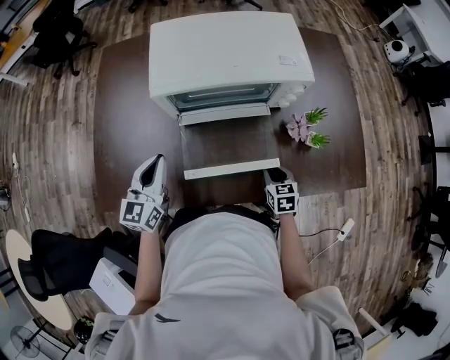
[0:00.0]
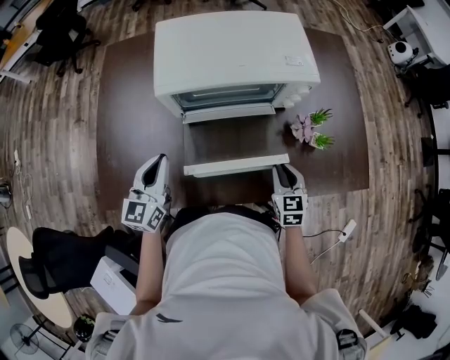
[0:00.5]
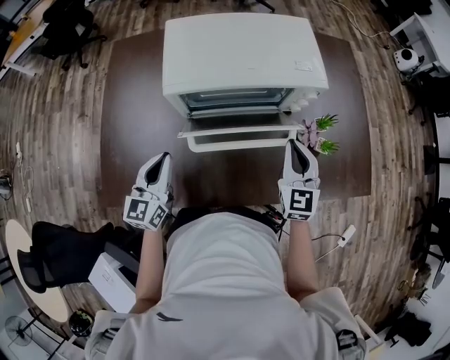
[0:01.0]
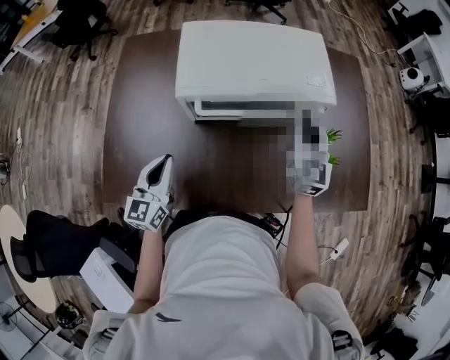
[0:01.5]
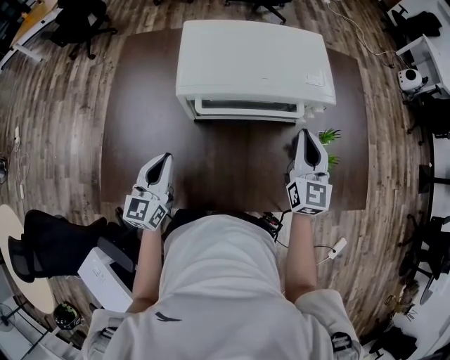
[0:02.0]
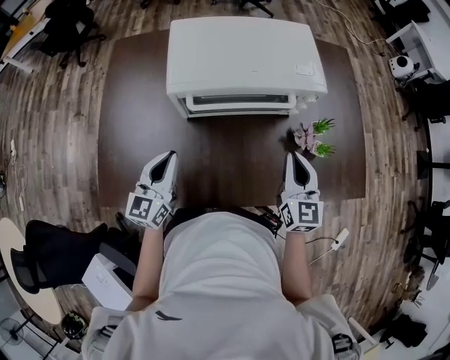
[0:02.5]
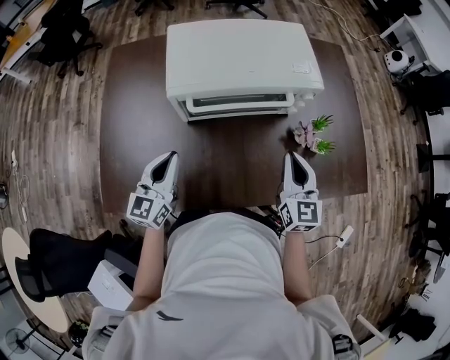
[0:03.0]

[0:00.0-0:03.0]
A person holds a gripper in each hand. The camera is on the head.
0:00.0 to 0:01.5: The right gripper moves upward and forward, approximately 30 cm, tips its fingers upward by some 40 degrees, and closes up.
0:01.5 to 0:03.0: The right gripper shifts roughly 15 cm backward.

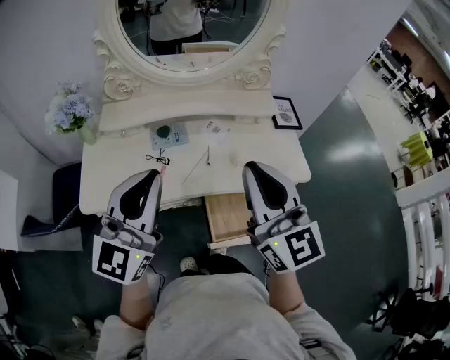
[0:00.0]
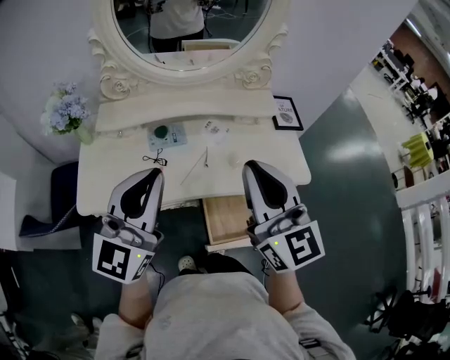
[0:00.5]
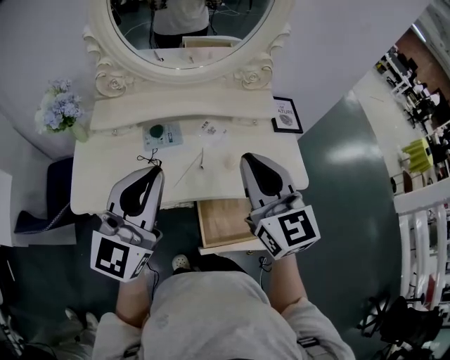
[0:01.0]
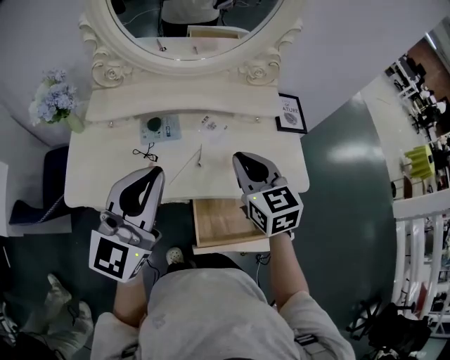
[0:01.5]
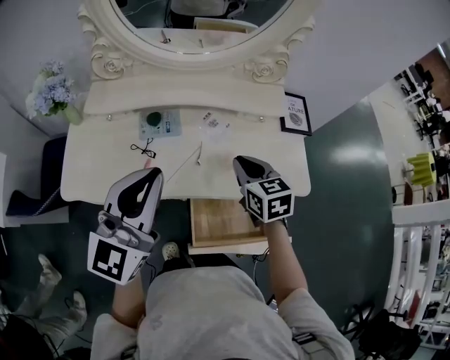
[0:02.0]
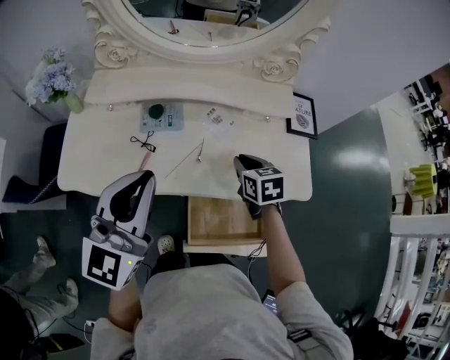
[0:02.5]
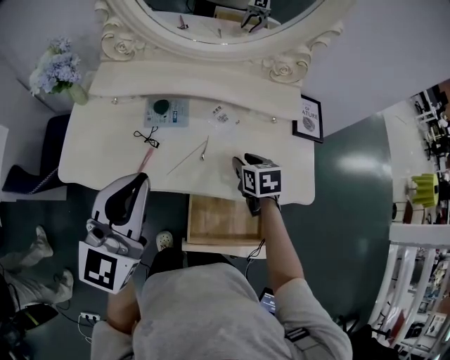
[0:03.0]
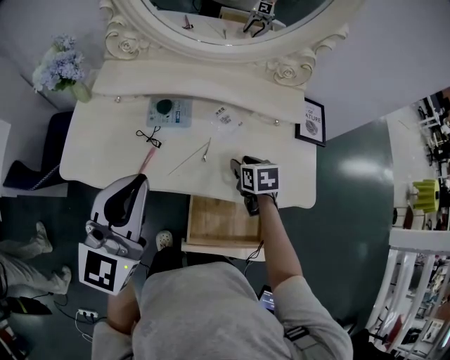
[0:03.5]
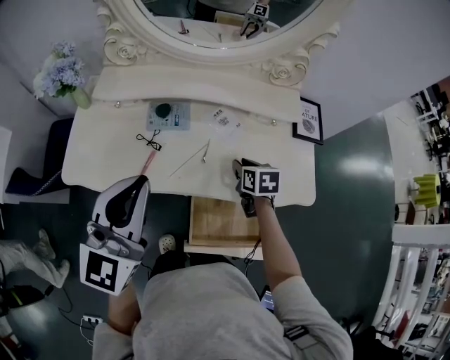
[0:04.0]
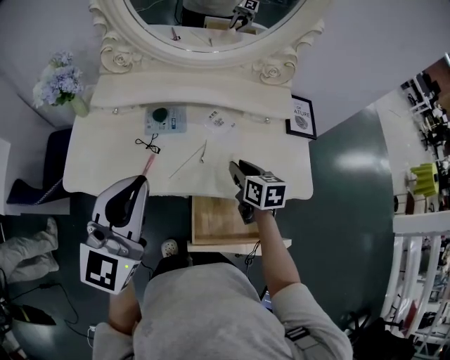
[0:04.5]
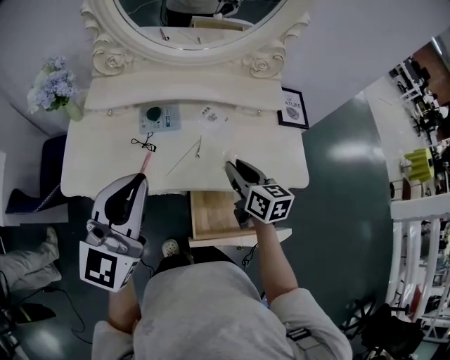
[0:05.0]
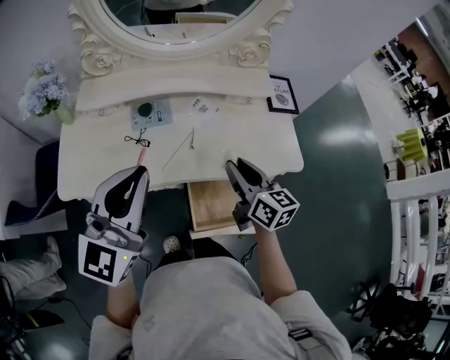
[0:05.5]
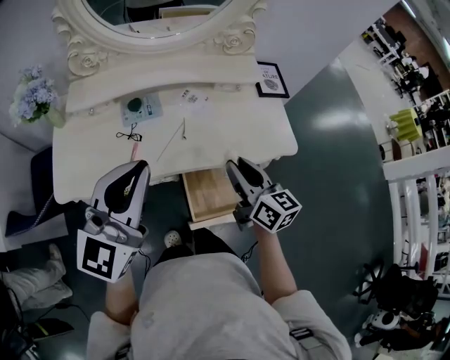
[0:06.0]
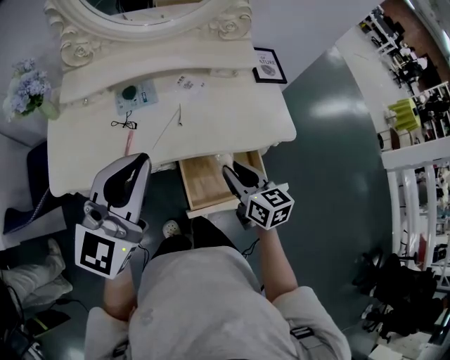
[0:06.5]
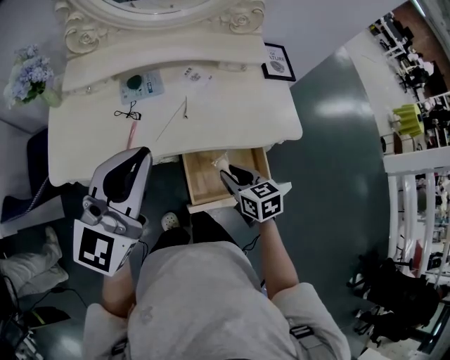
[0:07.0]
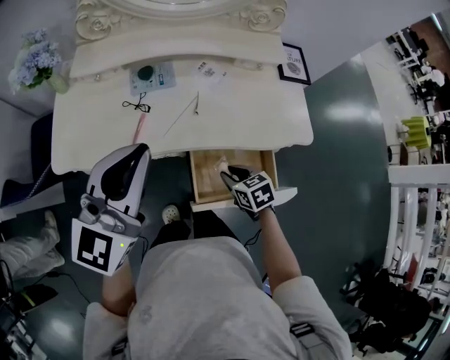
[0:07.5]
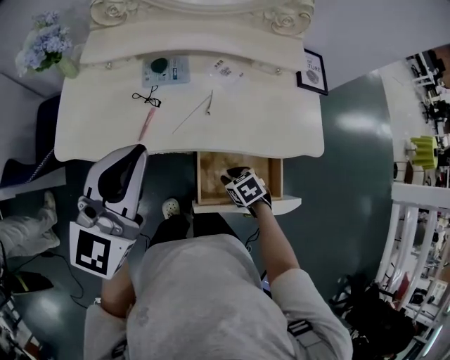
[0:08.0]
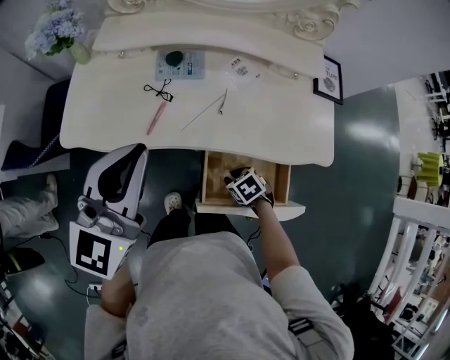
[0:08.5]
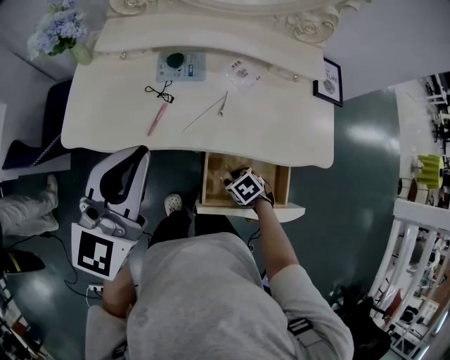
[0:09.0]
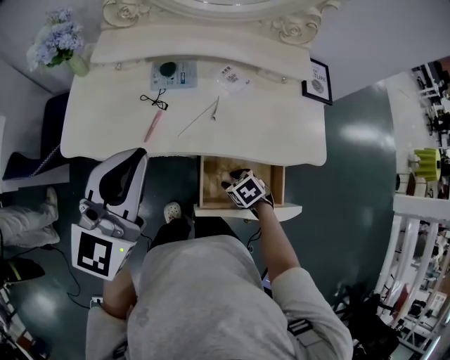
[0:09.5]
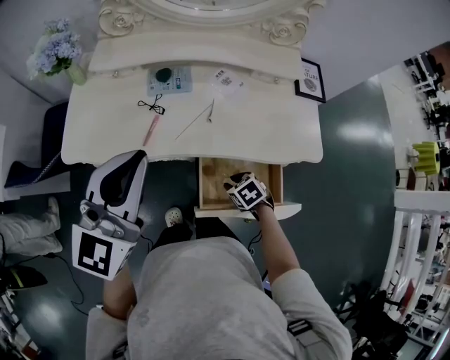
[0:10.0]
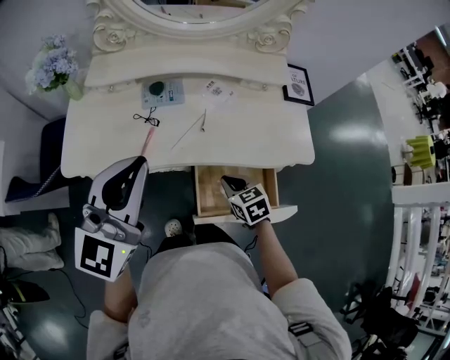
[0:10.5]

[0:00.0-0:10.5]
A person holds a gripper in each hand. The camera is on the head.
0:00.0 to 0:02.0: The left gripper travels forward by roughly 5 cm; the right gripper goes some 25 cm downward and forward, and points its fingers approximately 40 degrees further downward.
0:02.0 to 0:04.0: The right gripper travels downward by some 15 cm, and changes its angle by approximately 20 degrees.
0:04.0 to 0:06.5: The right gripper shifts about 20 cm backward and upward, and rotates about 30 degrees. Meanwhile the left gripper shifts by roughly 5 cm, and changes its angle by about 20 degrees.
0:06.5 to 0:08.5: The left gripper changes place by roughly 10 cm, while the right gripper heads downward, covering approximately 25 cm, and points its fingers approximately 50 degrees further downward.
0:08.5 to 0:10.5: The right gripper goes some 10 cm upward, and changes its angle by some 30 degrees.

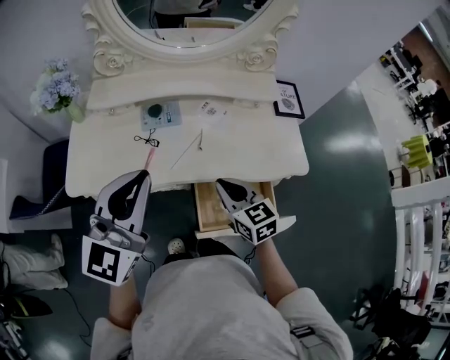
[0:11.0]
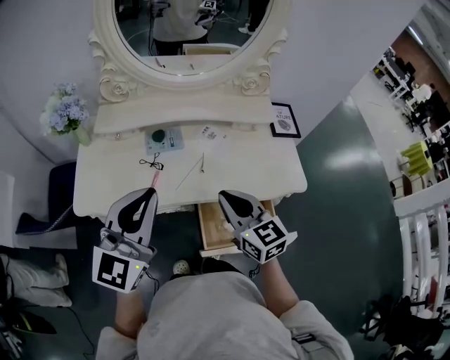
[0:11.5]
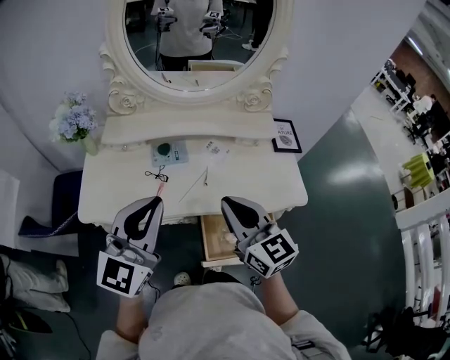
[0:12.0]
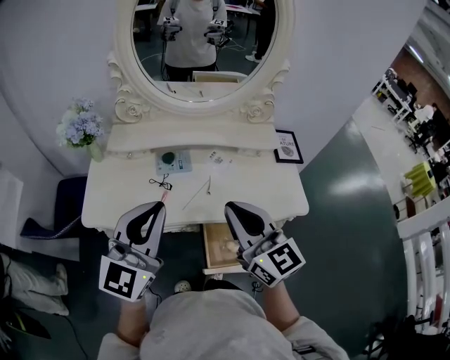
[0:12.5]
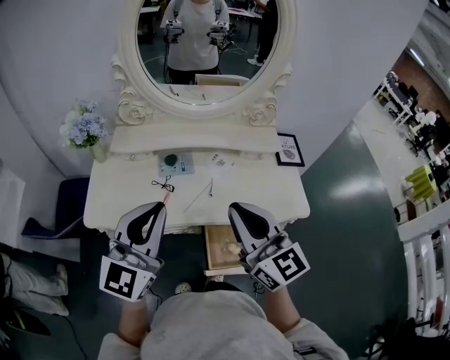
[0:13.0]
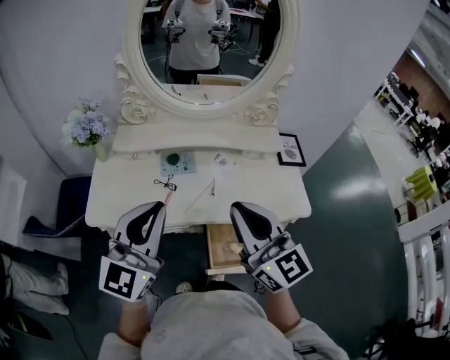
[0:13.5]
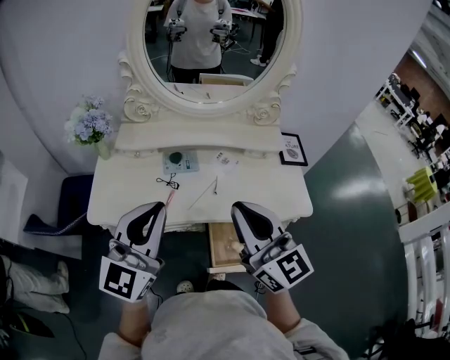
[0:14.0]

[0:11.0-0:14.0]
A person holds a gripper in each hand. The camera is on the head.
0:11.0 to 0:12.5: The right gripper is displaced upward by some 20 cm, and swivels roughly 30 degrees.
0:12.5 to 0:14.0: There are only small adjustments of the grippers.

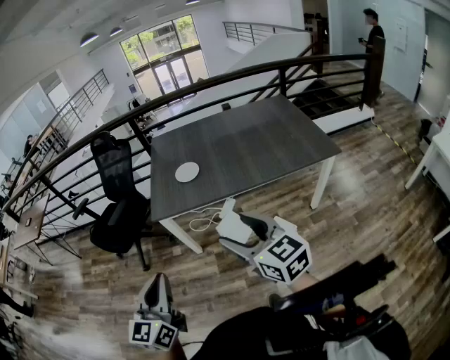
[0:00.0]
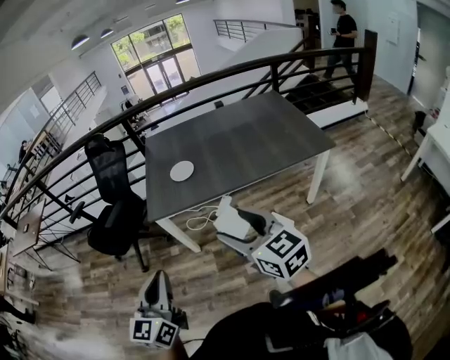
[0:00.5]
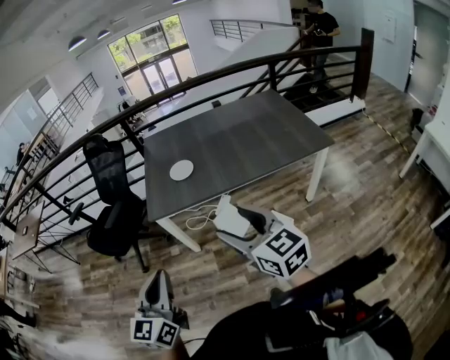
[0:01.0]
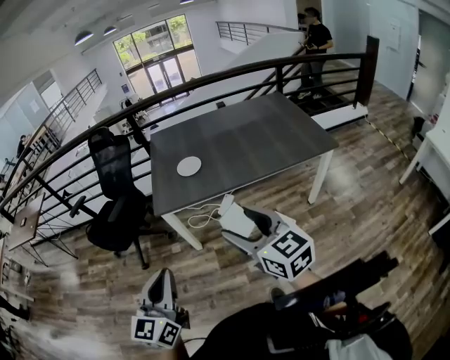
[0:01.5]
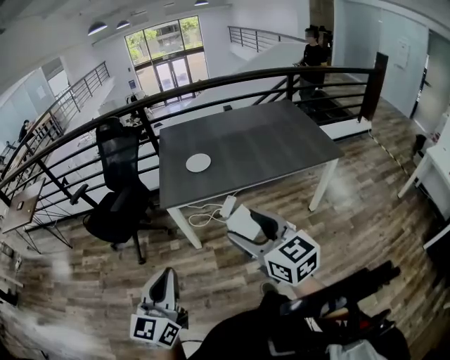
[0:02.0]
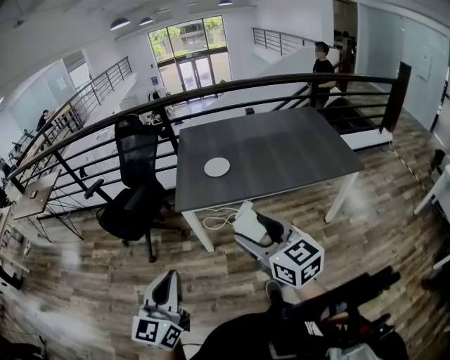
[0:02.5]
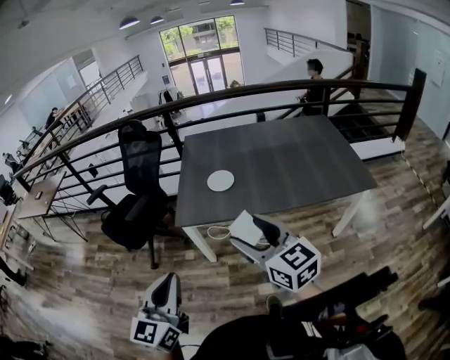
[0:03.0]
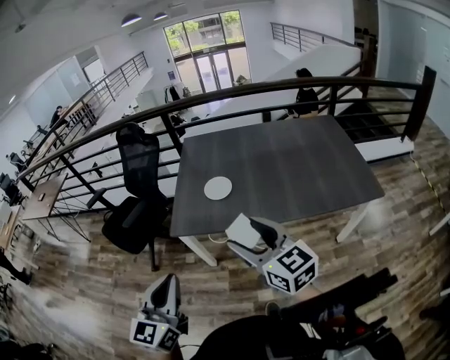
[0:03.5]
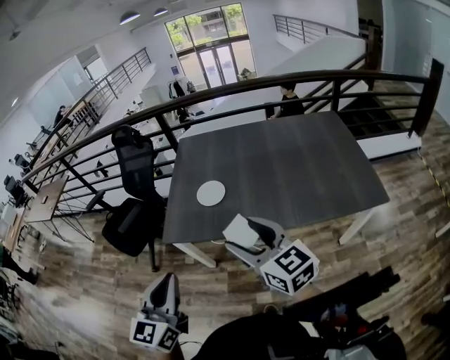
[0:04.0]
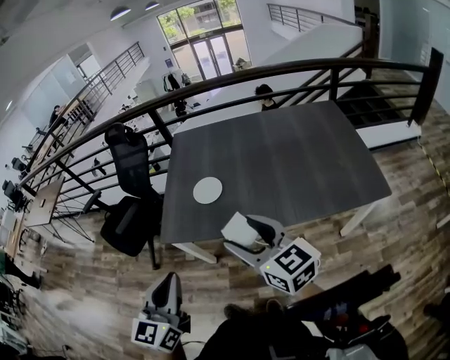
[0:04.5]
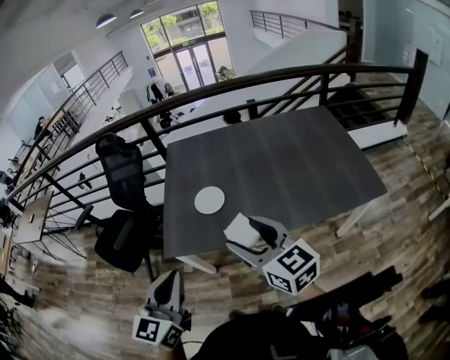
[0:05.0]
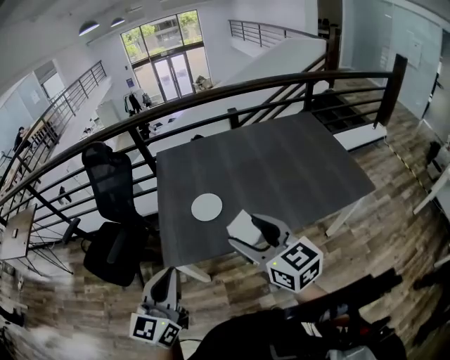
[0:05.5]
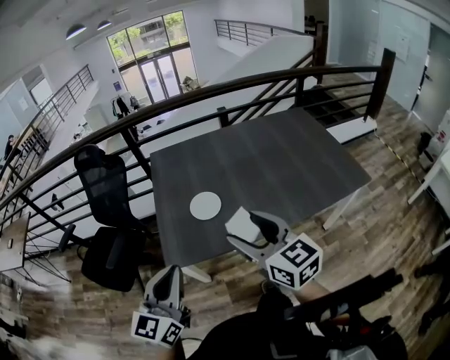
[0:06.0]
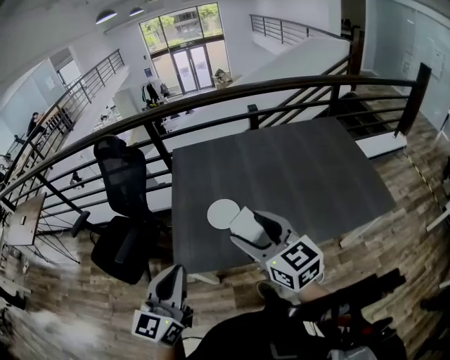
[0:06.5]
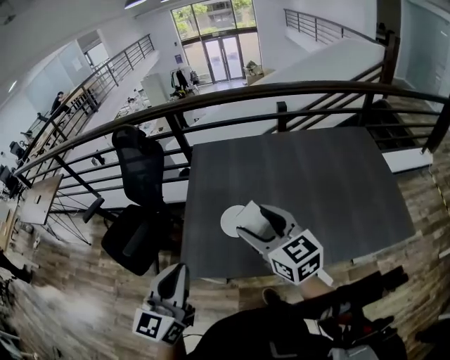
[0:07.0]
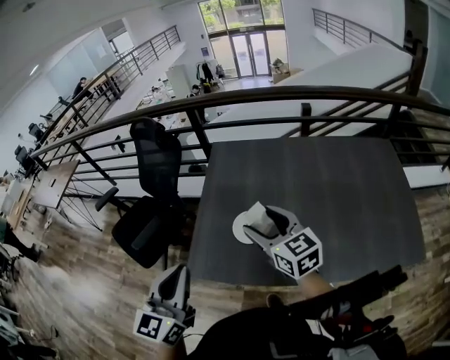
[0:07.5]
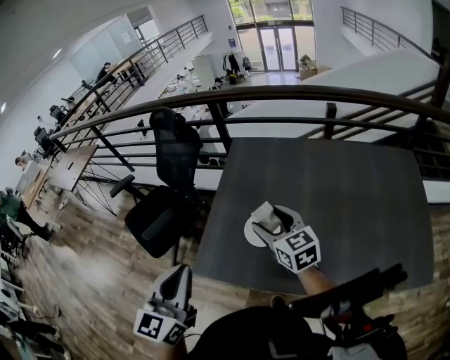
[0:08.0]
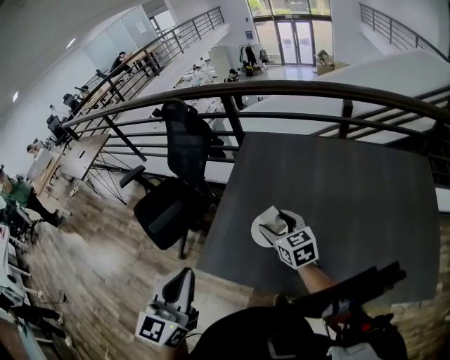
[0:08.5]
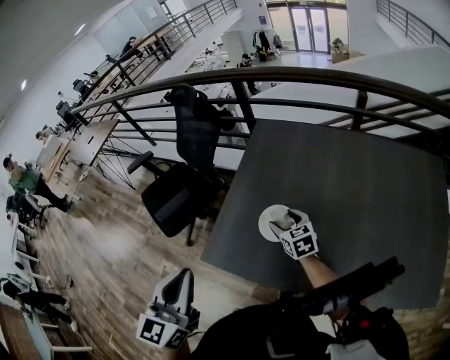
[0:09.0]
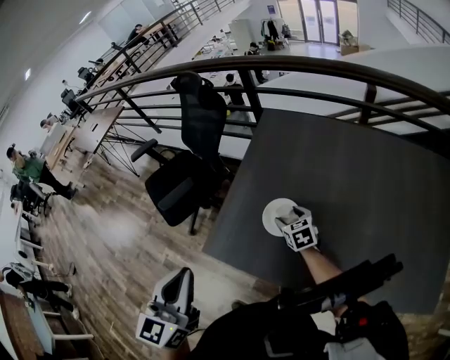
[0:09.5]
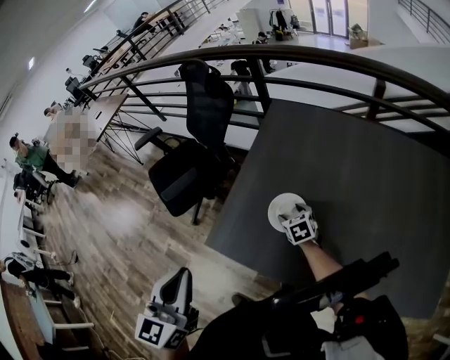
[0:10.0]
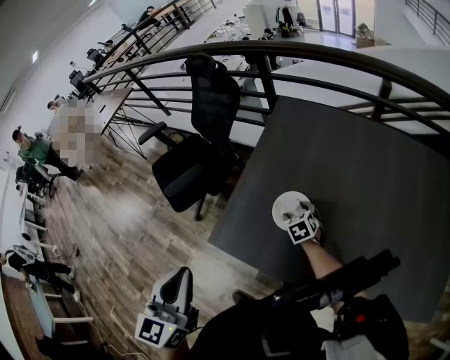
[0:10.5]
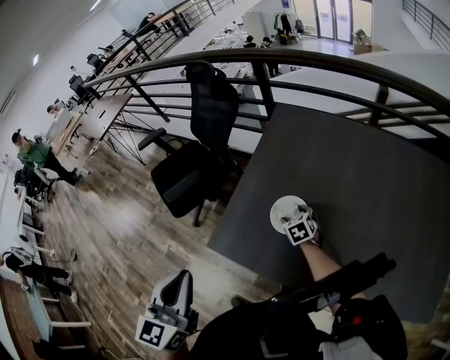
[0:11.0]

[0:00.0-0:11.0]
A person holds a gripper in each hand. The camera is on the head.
0:00.0 to 0:02.0: The two grippers go some 10 cm to the left.
0:02.0 to 0:03.5: The two grippers go roughly 20 cm forward and to the right.
0:03.5 to 0:05.5: The grippers both shift forward by roughly 15 cm.
0:05.5 to 0:07.5: The right gripper is displaced forward by approximately 25 cm, while the left gripper is displaced forward by roughly 15 cm.
0:07.5 to 0:09.0: The right gripper goes some 25 cm downward and forward, and turns by roughly 20 degrees.
0:09.0 to 0:11.0: The right gripper moves downward, about 10 cm, and rotates some 20 degrees.
